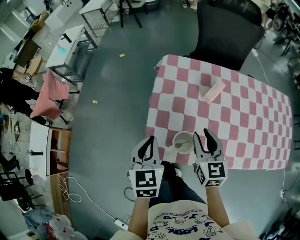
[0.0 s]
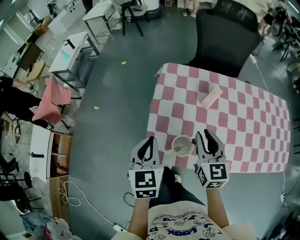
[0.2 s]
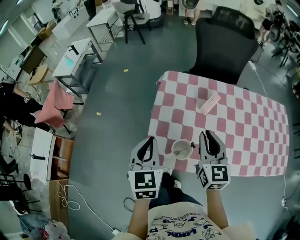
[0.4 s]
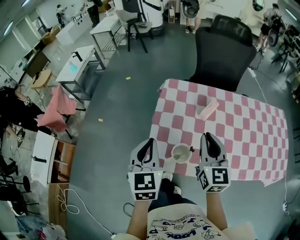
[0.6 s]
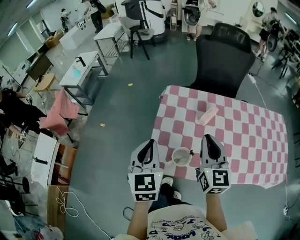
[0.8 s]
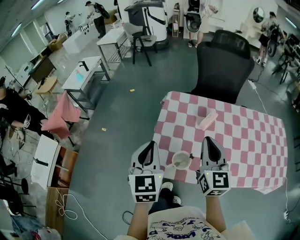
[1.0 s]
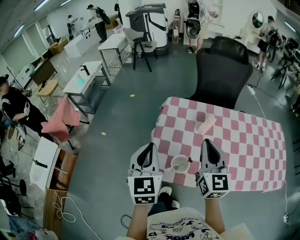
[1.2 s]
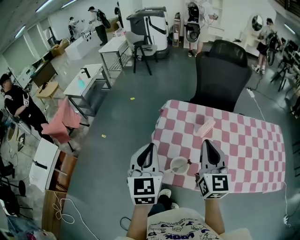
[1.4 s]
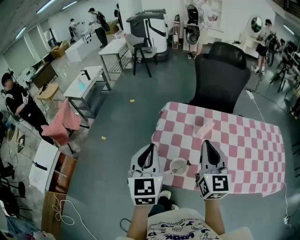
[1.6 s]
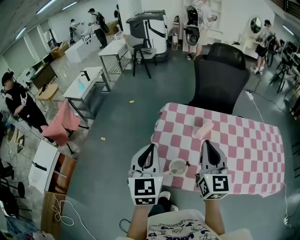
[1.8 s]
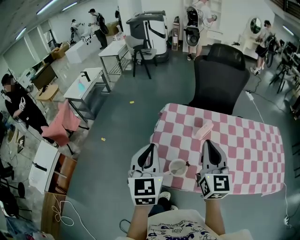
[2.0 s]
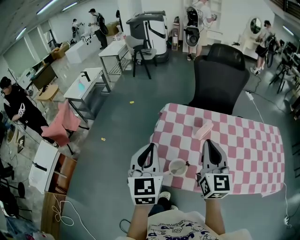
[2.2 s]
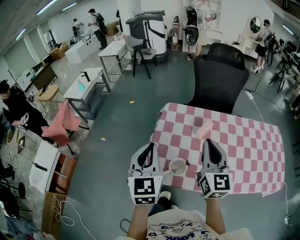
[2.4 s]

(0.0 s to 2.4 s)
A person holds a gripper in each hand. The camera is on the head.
0.0 s - 1.2 s: Both grippers move upward, roughly 15 cm. The right gripper rotates about 20 degrees, and closes.
1.2 s - 2.4 s: There are only small adjustments of the grippers.

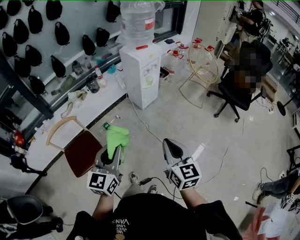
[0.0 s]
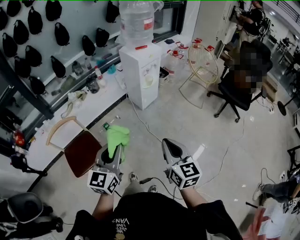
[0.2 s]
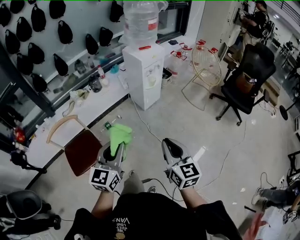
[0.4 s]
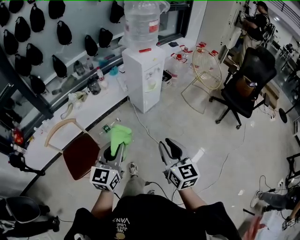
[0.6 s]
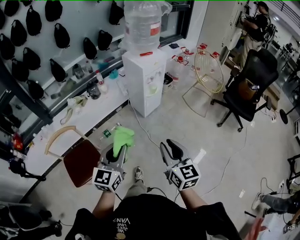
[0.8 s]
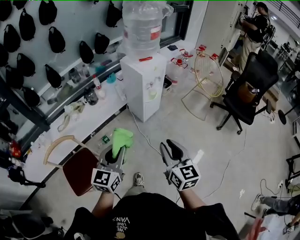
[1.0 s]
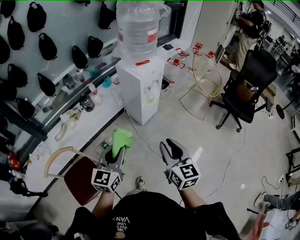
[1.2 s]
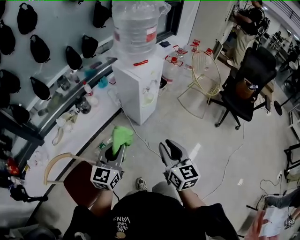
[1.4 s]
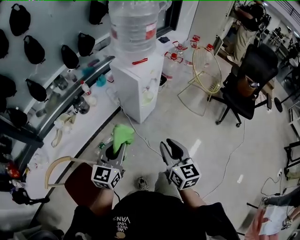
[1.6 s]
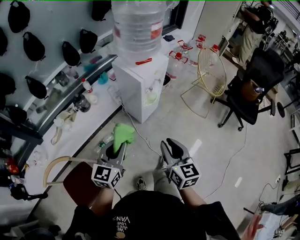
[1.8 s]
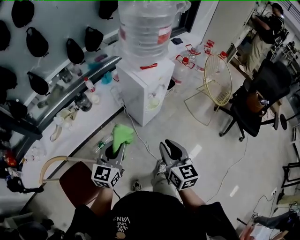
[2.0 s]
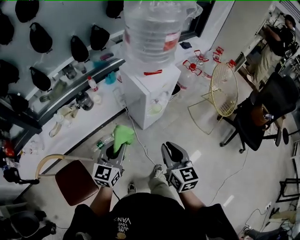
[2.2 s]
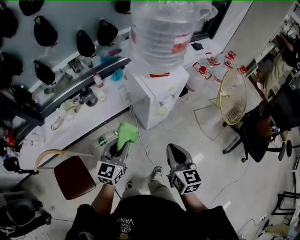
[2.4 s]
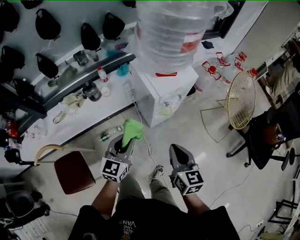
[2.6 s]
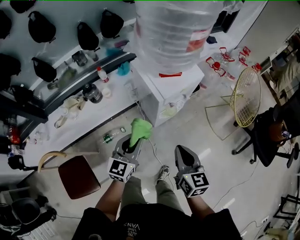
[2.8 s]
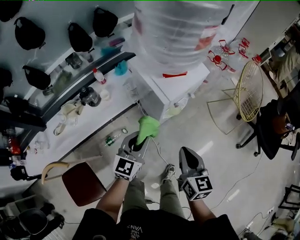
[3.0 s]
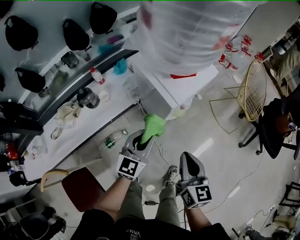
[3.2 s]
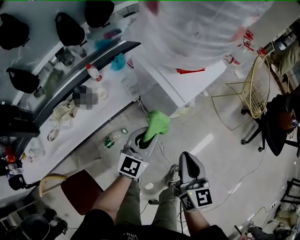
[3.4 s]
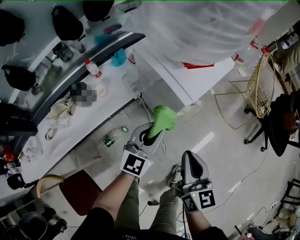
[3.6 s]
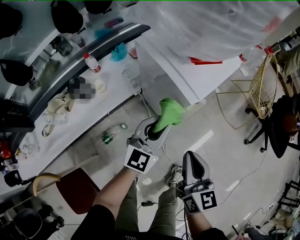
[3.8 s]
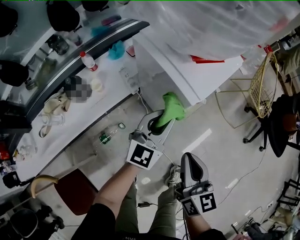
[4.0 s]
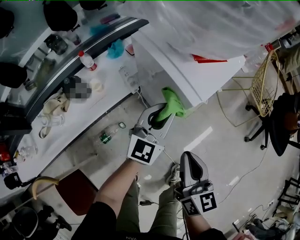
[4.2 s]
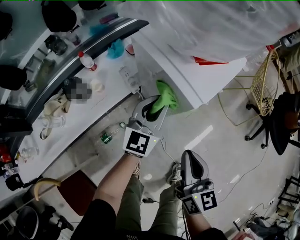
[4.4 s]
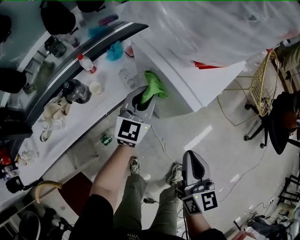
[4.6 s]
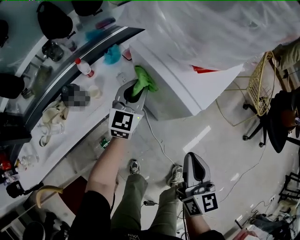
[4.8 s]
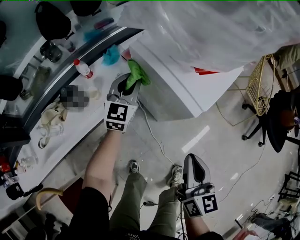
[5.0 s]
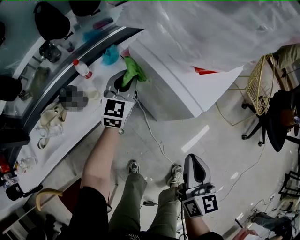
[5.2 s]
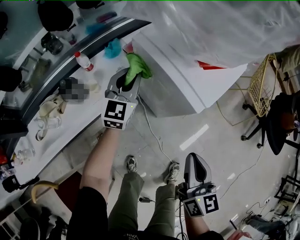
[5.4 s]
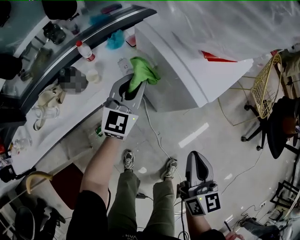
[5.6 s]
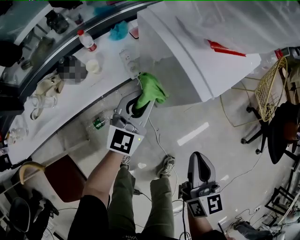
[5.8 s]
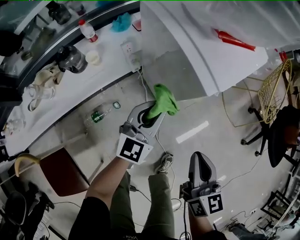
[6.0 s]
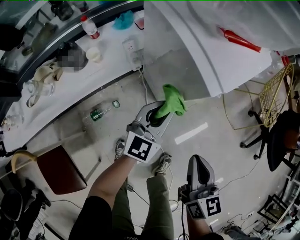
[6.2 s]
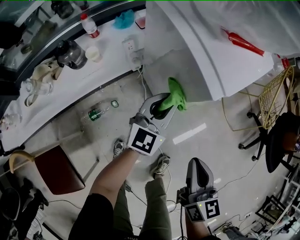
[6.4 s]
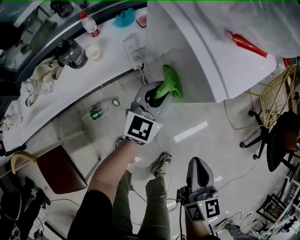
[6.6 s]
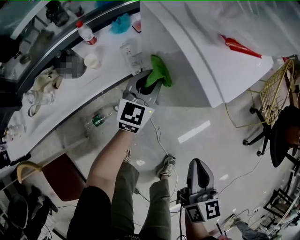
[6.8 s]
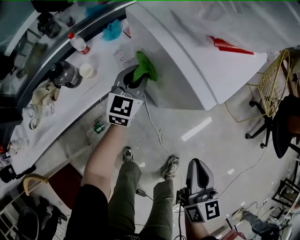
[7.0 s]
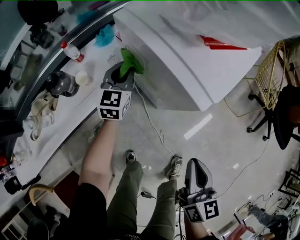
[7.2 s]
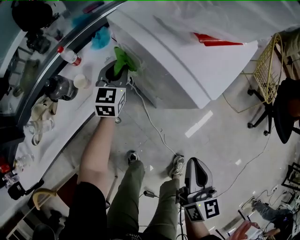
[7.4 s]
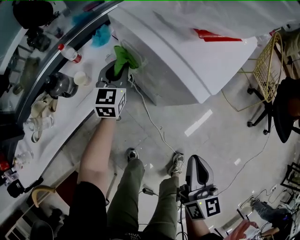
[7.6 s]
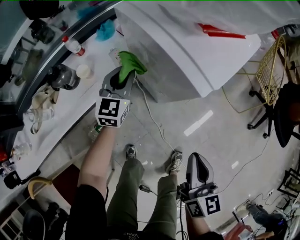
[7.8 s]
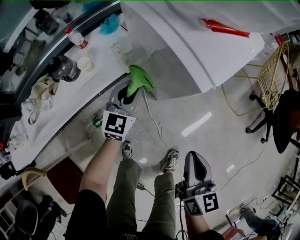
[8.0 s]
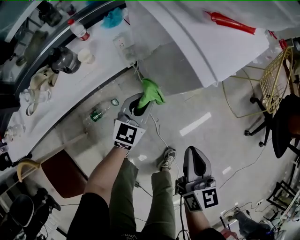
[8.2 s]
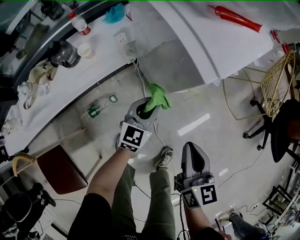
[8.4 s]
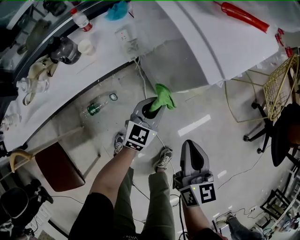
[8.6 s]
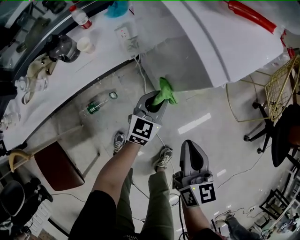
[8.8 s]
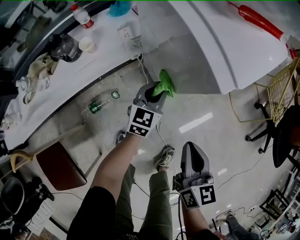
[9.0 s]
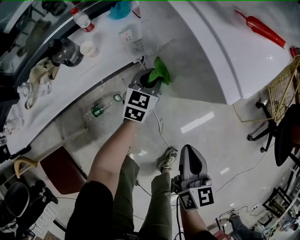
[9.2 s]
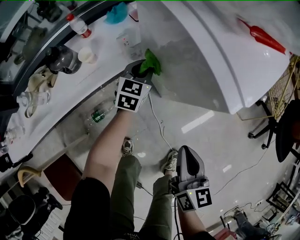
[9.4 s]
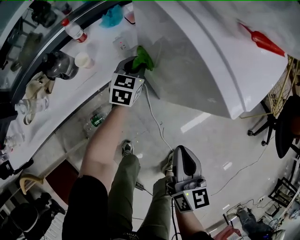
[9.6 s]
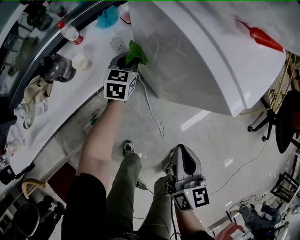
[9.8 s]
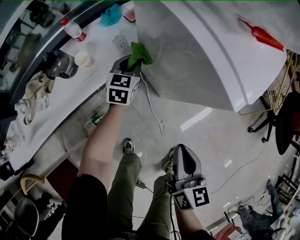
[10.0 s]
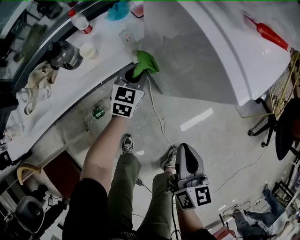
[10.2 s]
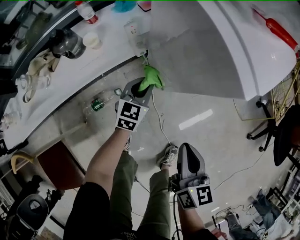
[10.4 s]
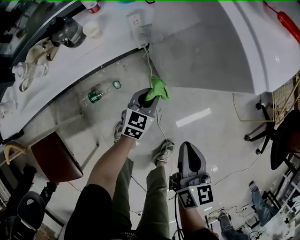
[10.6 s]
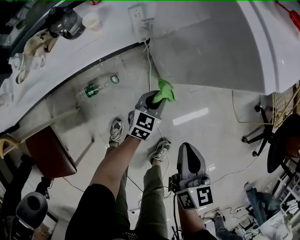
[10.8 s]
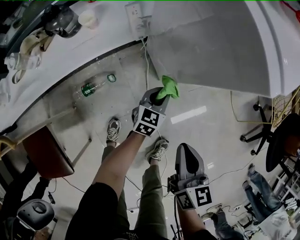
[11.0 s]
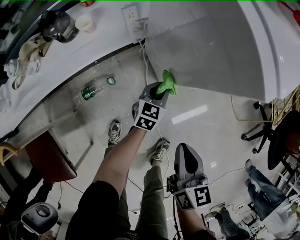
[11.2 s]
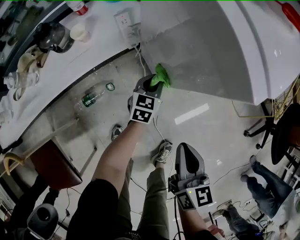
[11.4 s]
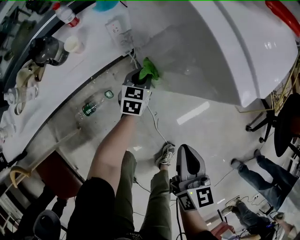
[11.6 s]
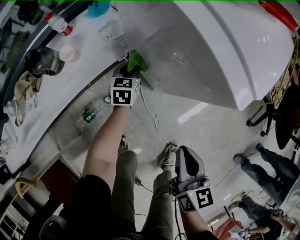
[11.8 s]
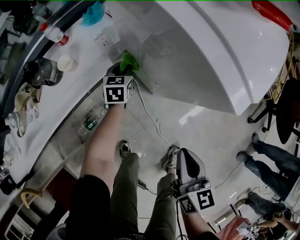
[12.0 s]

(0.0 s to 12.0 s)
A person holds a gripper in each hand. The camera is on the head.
0.0 s - 1.6 s: Both grippers move forward, approximately 30 cm. The right gripper opens.
1.6 s - 3.0 s: Both grippers move forward and downward, some 25 cm. The right gripper closes.
3.0 s - 4.4 s: The left gripper goes some 15 cm forward and downward, while the right gripper is displaced downward and to the left by roughly 10 cm.
4.4 s - 6.0 s: The left gripper travels downward by approximately 5 cm, and reaches about 10 cm forward, then returns. Meanwhile the right gripper goes some 5 cm to the right.
6.0 s - 7.6 s: The left gripper moves forward and to the left, roughly 20 cm.
7.6 s - 9.0 s: The left gripper travels to the right, backward and downward by some 20 cm. The right gripper heads downward, covering about 5 cm.
9.0 s - 10.4 s: The left gripper shifts approximately 10 cm to the left, and moves roughly 15 cm forward and comes back.
10.4 s - 12.0 s: The left gripper goes about 15 cm forward and downward.

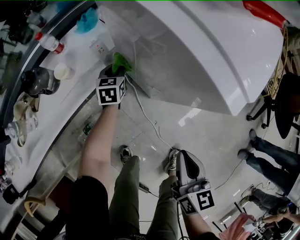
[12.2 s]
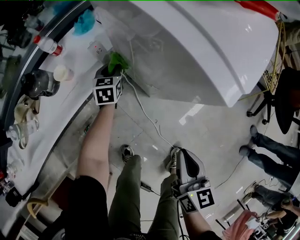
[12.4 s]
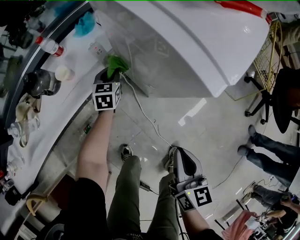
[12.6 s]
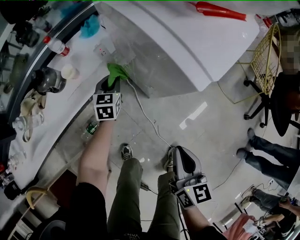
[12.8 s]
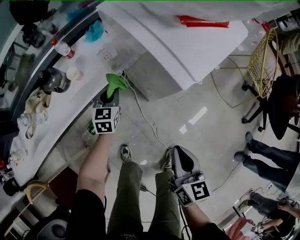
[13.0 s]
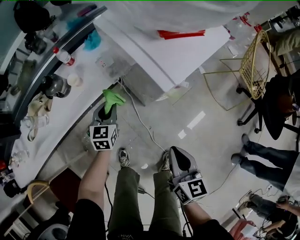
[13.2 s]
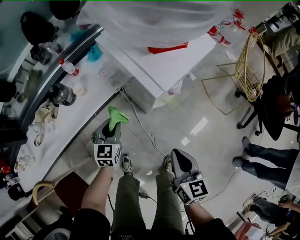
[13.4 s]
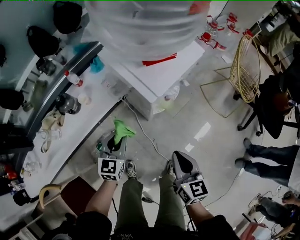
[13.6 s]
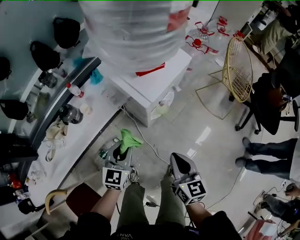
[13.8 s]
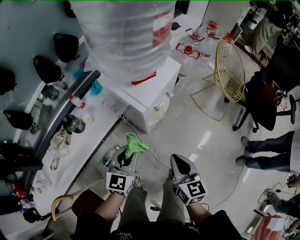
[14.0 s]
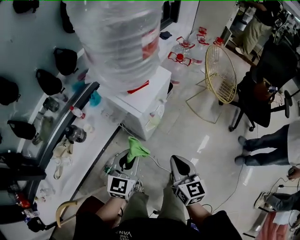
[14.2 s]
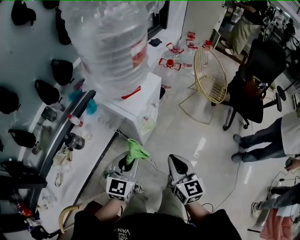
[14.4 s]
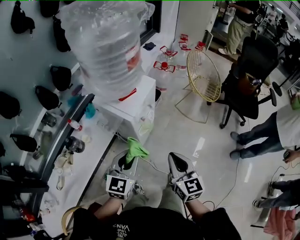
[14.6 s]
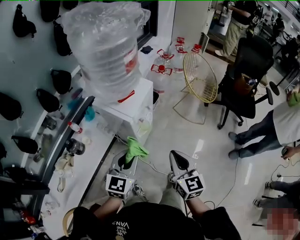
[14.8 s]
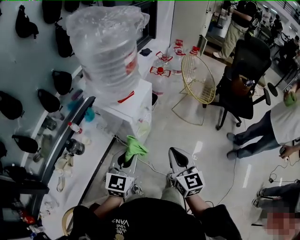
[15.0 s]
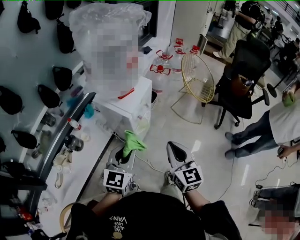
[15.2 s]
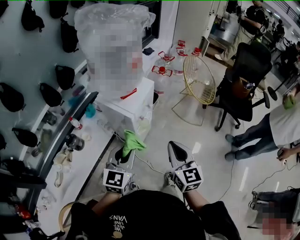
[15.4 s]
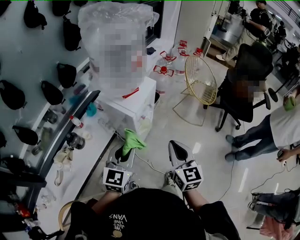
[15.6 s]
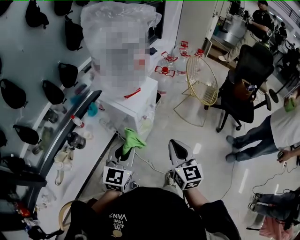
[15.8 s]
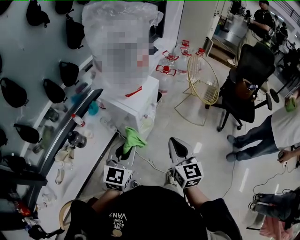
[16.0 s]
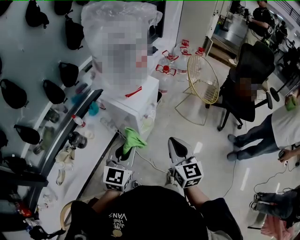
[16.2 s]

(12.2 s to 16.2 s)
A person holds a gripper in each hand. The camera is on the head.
12.2 s - 13.6 s: The left gripper travels upward and backward by roughly 35 cm. The right gripper is displaced upward by roughly 15 cm.
13.6 s - 14.8 s: The left gripper travels upward and to the right by approximately 30 cm, and changes its angle by approximately 30 degrees, while the right gripper shifts approximately 20 cm upward, and turns by about 20 degrees.
14.8 s - 16.2 s: The grippers make only small movements.

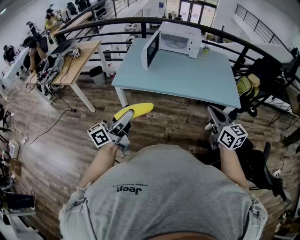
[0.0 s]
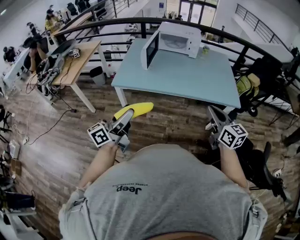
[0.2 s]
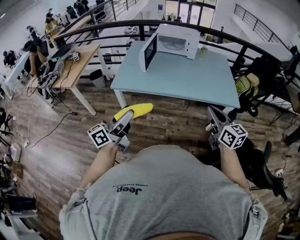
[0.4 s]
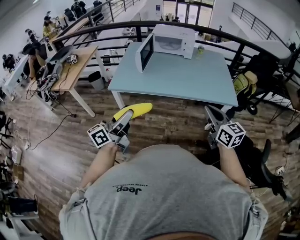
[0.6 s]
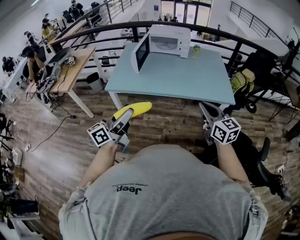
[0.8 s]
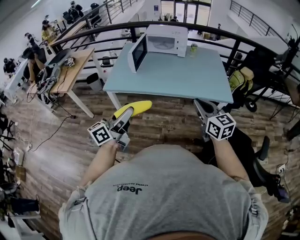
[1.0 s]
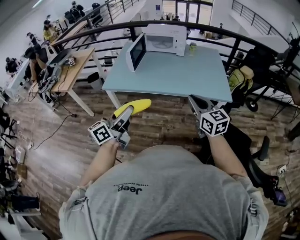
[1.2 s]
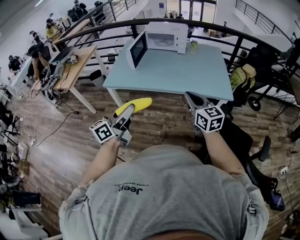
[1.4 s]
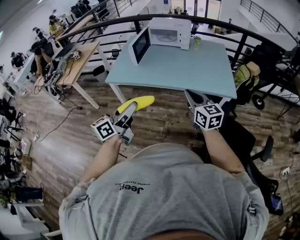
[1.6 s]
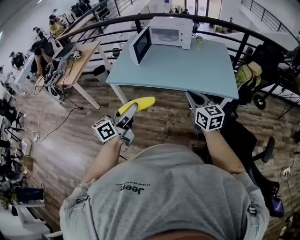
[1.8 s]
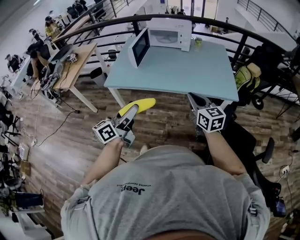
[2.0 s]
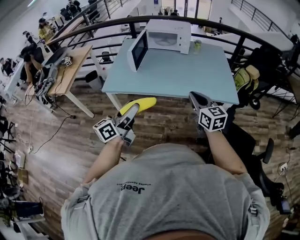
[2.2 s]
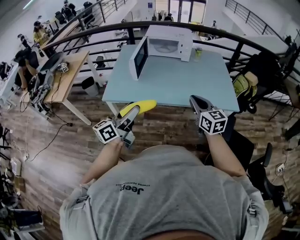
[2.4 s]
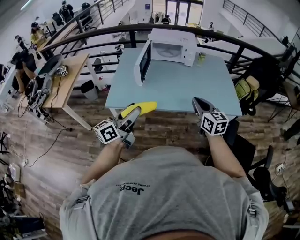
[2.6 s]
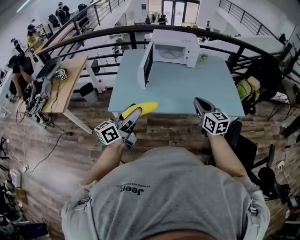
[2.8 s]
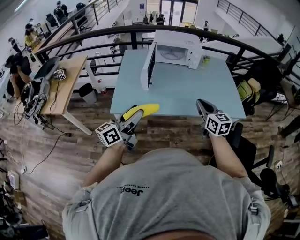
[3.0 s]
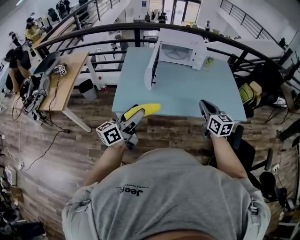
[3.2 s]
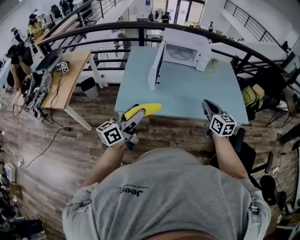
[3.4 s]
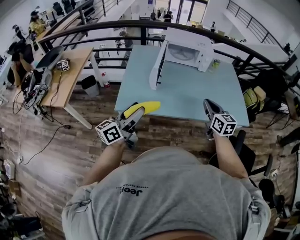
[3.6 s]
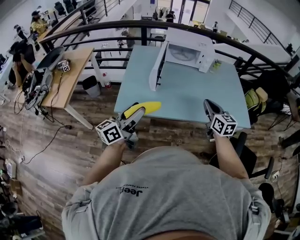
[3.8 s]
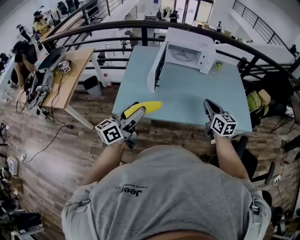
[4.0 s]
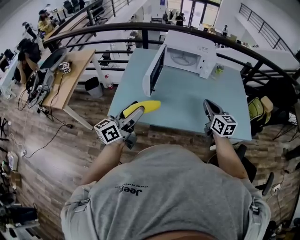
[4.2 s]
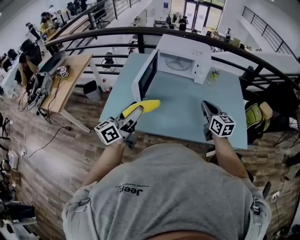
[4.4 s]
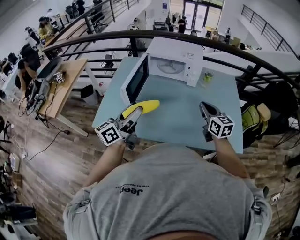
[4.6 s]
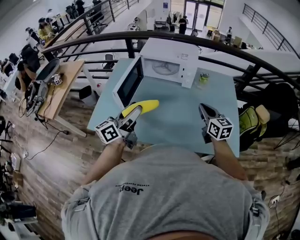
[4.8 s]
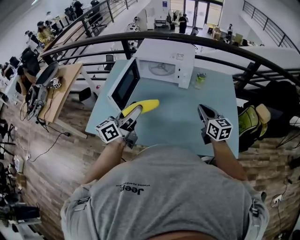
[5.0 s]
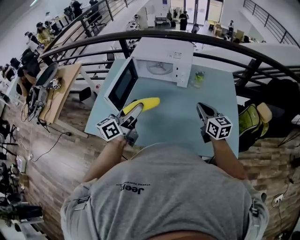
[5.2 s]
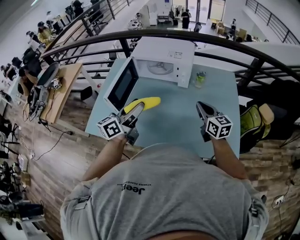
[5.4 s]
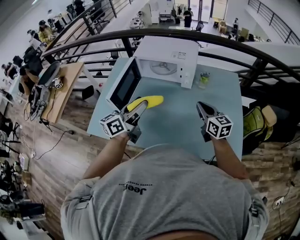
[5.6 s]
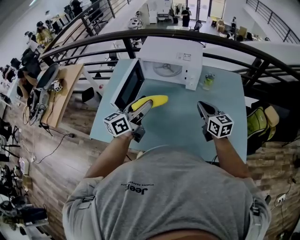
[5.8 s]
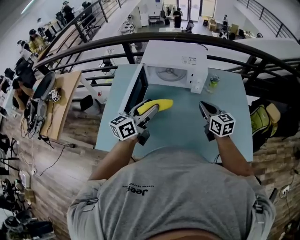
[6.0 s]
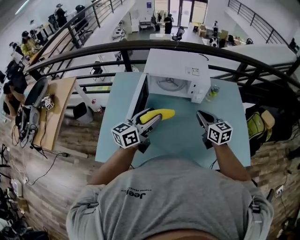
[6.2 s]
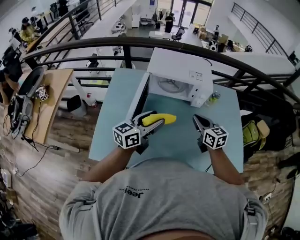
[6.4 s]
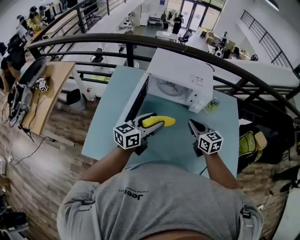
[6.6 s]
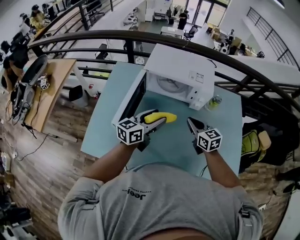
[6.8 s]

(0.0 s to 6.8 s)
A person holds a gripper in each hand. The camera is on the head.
0.0 s - 1.4 s: The left gripper travels to the right by roughly 15 cm, while the right gripper is displaced to the right by approximately 5 cm.
1.4 s - 2.8 s: Both grippers move forward and to the left, some 25 cm.
2.8 s - 4.0 s: The right gripper is displaced forward by roughly 10 cm, while the left gripper shifts approximately 5 cm forward.
4.0 s - 5.4 s: The grippers both shift to the right and forward by about 35 cm.
5.4 s - 6.8 s: The left gripper is displaced forward, downward and to the left by roughly 15 cm. The right gripper shifts roughly 20 cm to the left and forward.
